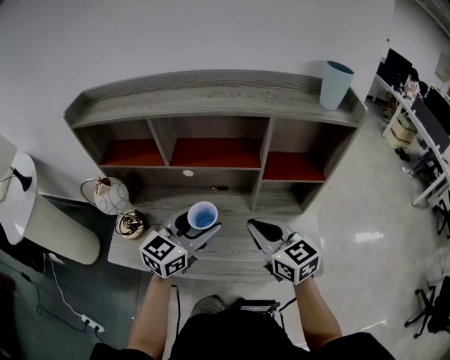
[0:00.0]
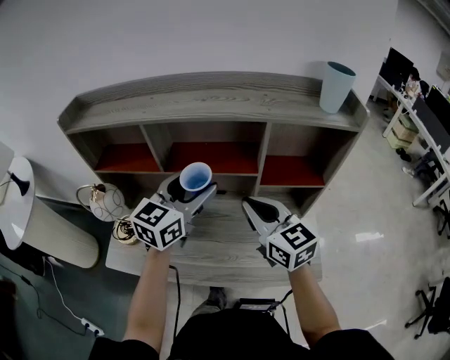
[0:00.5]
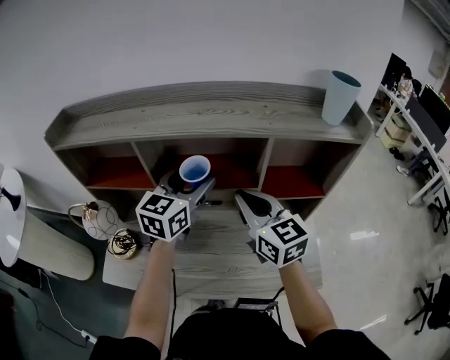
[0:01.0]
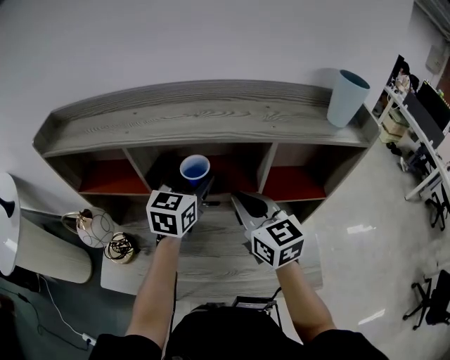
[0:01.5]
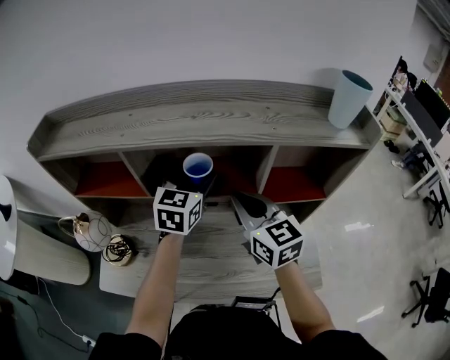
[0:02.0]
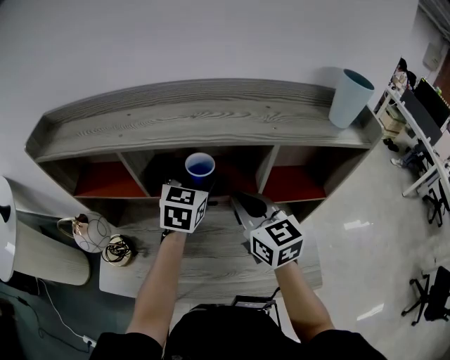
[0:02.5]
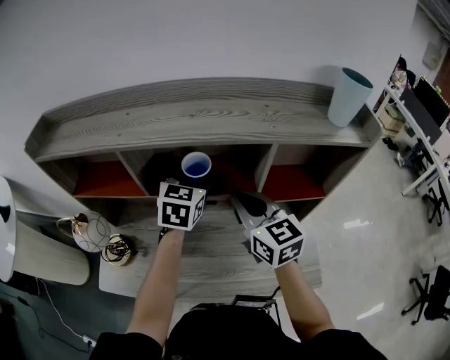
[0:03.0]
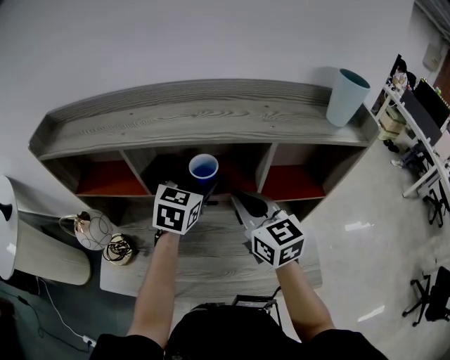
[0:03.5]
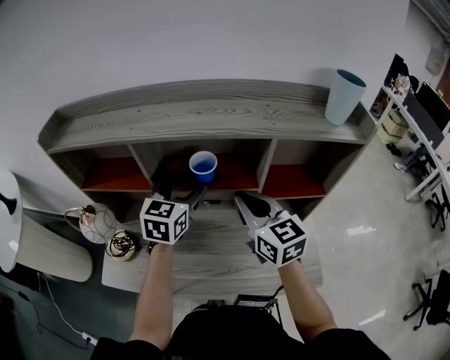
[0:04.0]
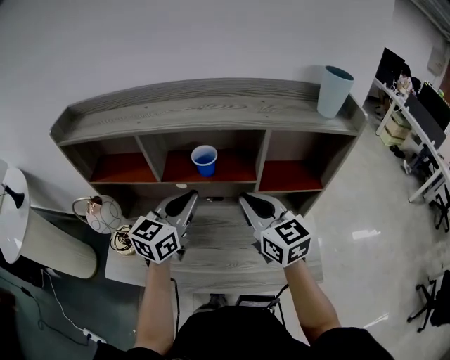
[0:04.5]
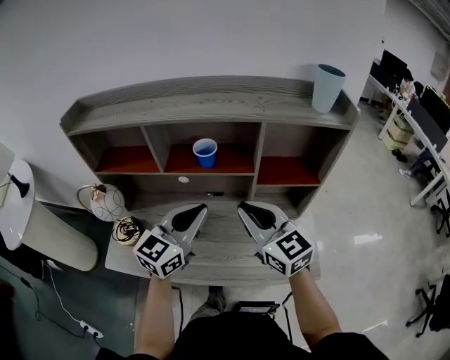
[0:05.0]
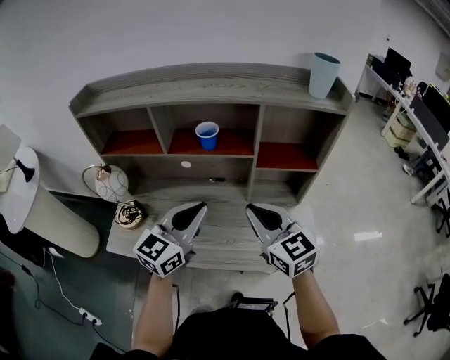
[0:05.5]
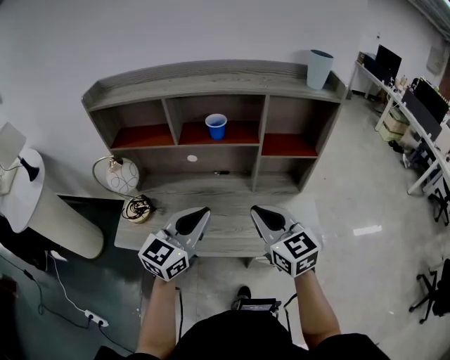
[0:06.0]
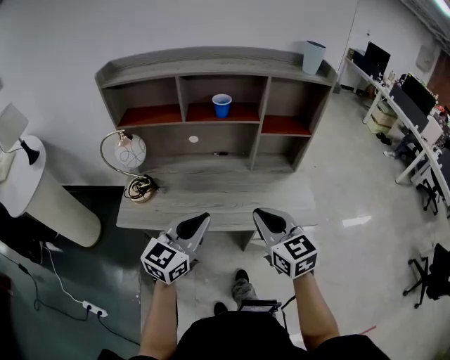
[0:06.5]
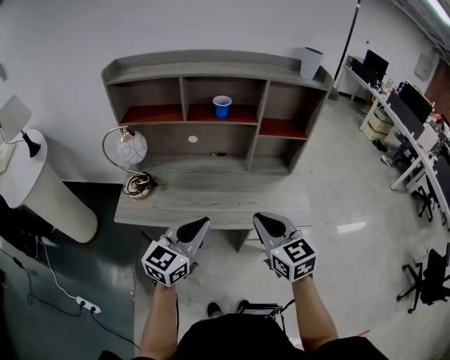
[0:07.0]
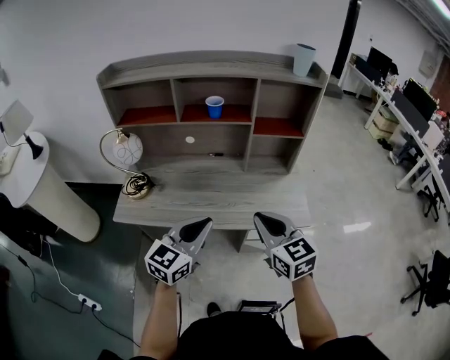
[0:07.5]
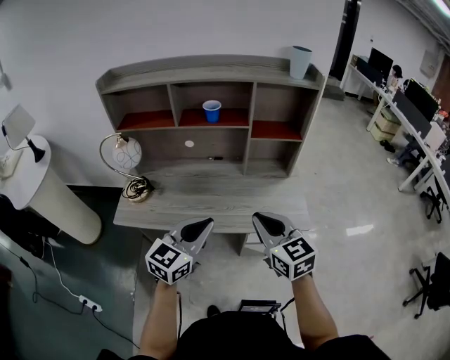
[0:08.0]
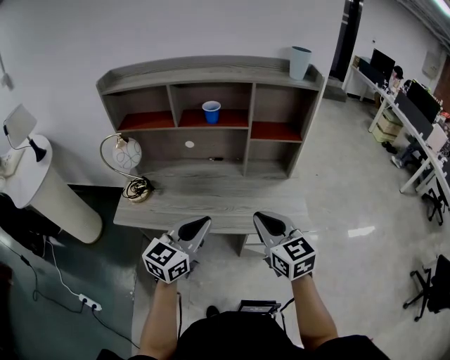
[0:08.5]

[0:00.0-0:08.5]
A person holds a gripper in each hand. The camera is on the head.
0:00.0 to 0:02.0: The two grippers go approximately 20 cm forward.
0:02.0 to 0:04.0: The left gripper moves about 5 cm.
0:04.0 to 0:06.5: The two grippers go roughly 35 cm backward. The left gripper rotates about 20 degrees, and closes.
0:06.5 to 0:08.5: Both grippers travel together to the right, about 5 cm.

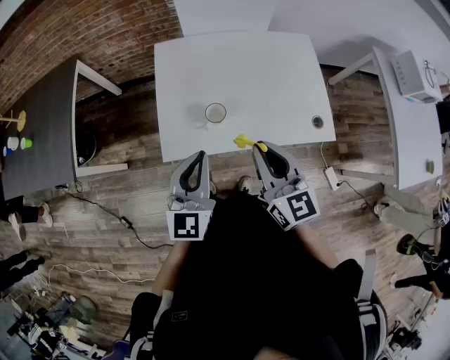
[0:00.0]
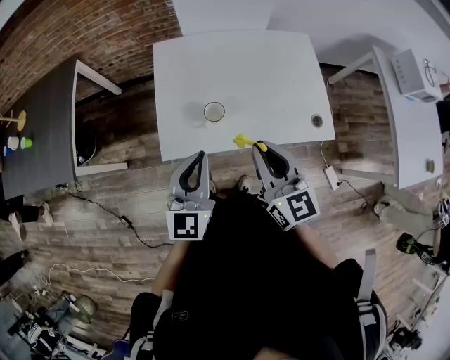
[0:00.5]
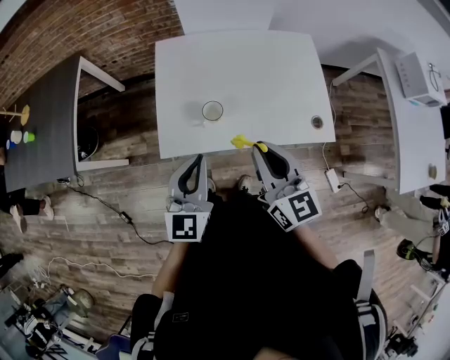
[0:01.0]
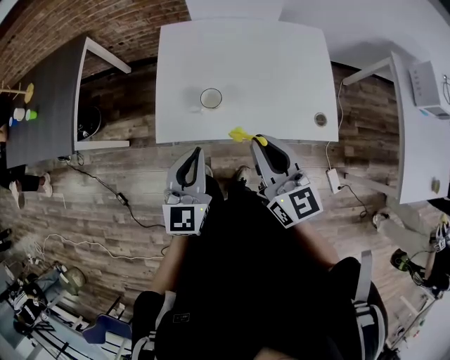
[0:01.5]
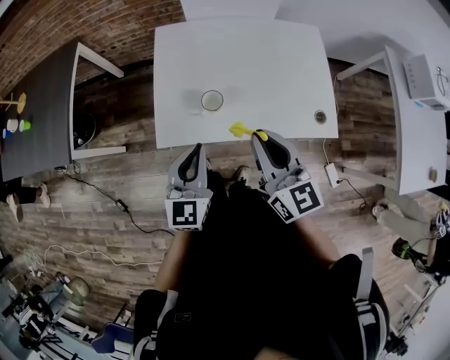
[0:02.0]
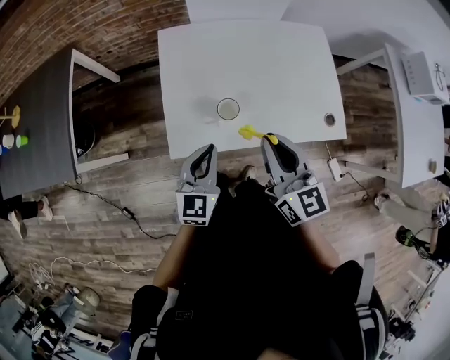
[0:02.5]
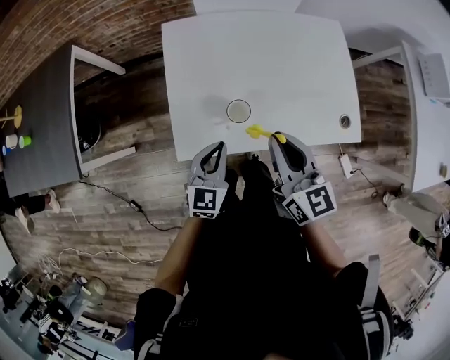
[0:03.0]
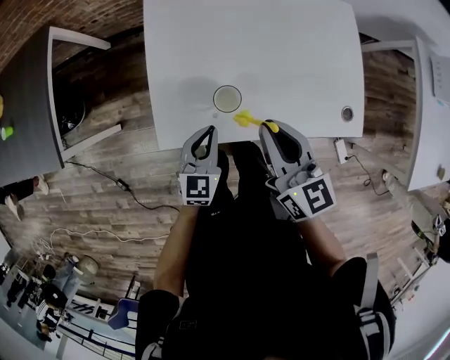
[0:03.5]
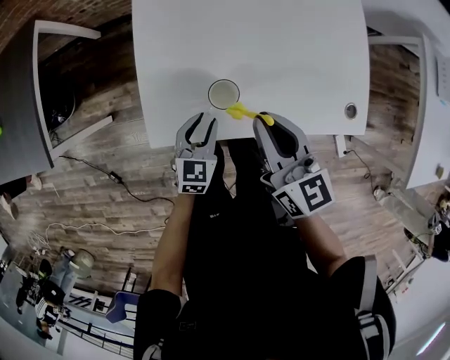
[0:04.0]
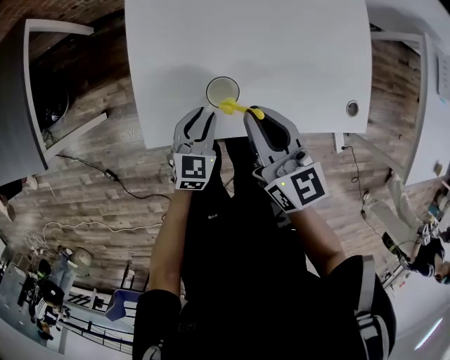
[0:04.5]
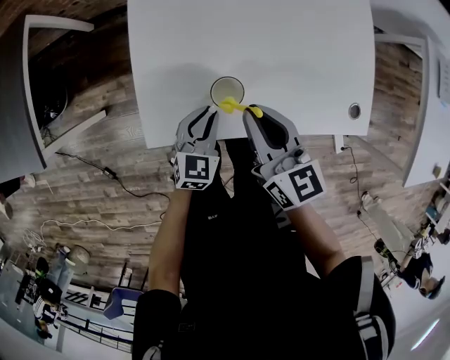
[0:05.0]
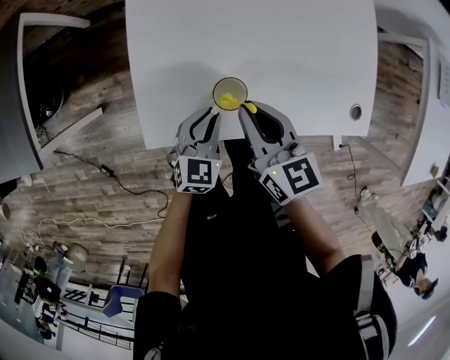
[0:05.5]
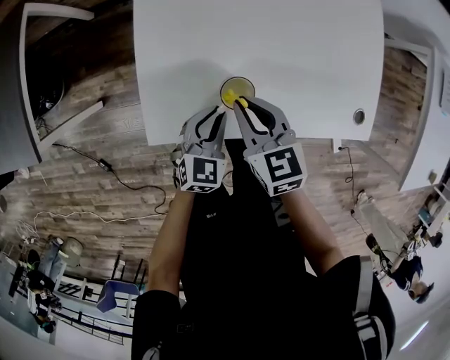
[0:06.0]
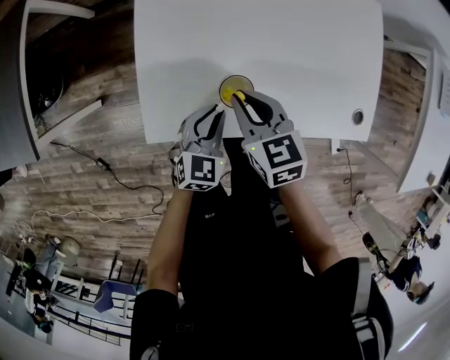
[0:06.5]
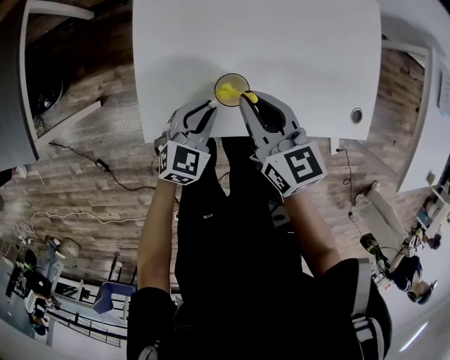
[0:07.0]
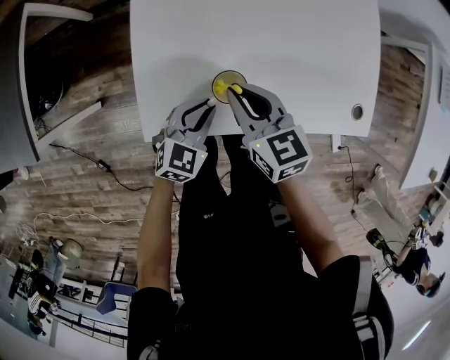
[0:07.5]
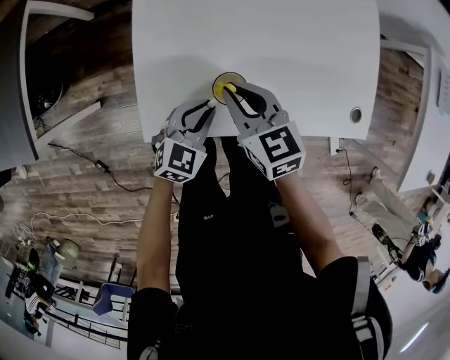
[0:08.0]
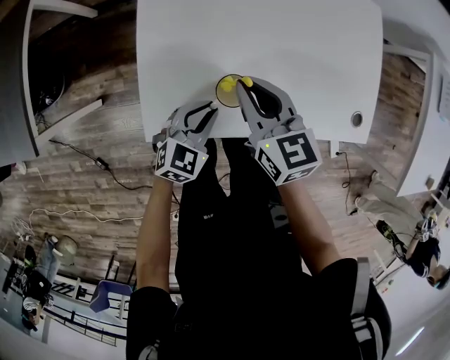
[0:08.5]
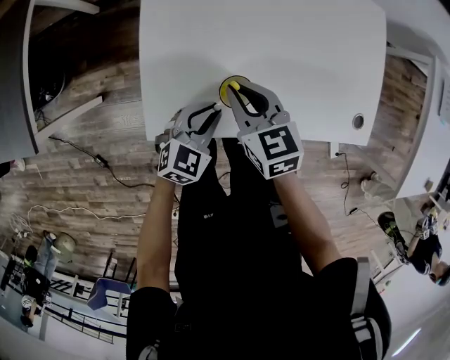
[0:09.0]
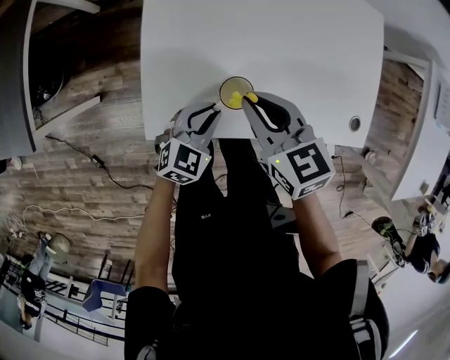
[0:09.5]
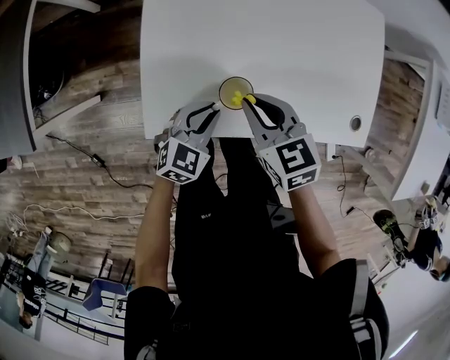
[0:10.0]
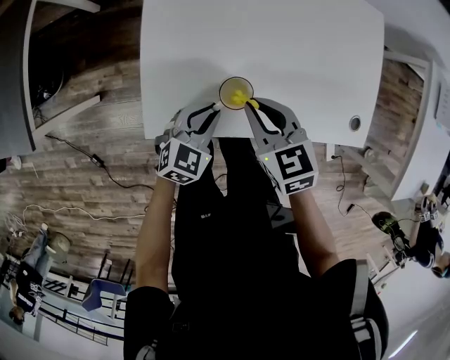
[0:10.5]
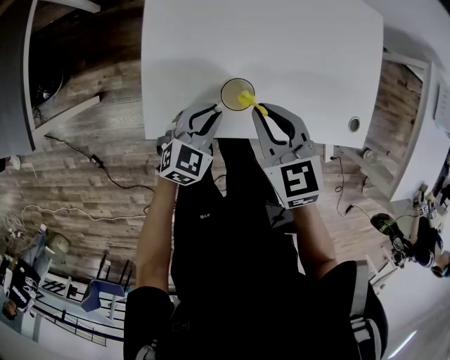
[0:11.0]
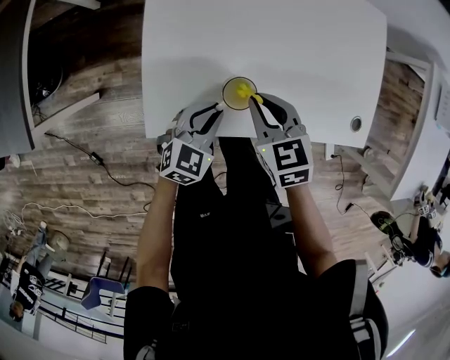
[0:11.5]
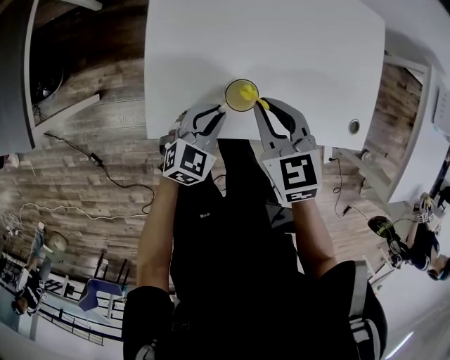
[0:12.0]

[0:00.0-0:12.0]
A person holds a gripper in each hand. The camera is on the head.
0:00.0 to 0:02.0: The grippers make only small movements.
0:02.0 to 0:04.0: The right gripper is displaced downward and forward by about 15 cm, while the left gripper goes some 25 cm downward and forward, swivels approximately 30 degrees, and opens its fingers.
0:04.0 to 0:06.0: The right gripper goes roughly 10 cm downward and to the left, and rotates some 30 degrees.
0:06.0 to 0:12.0: There are only small adjustments of the grippers.

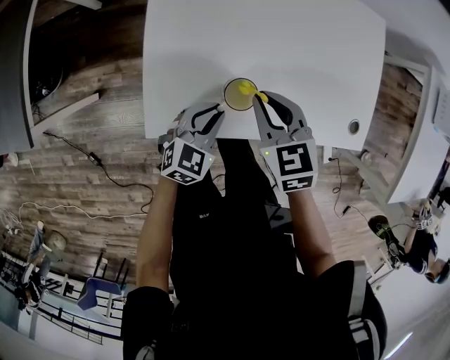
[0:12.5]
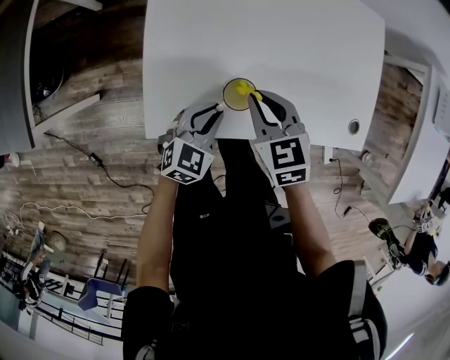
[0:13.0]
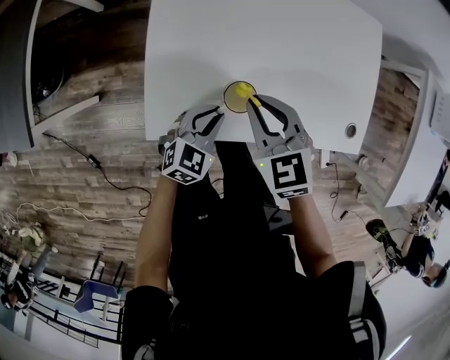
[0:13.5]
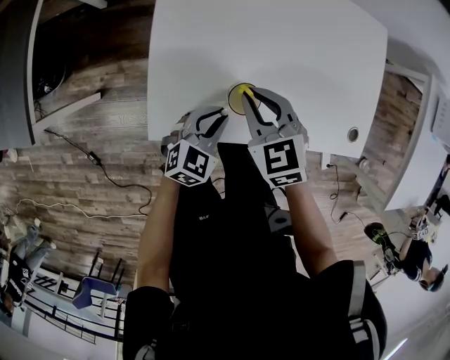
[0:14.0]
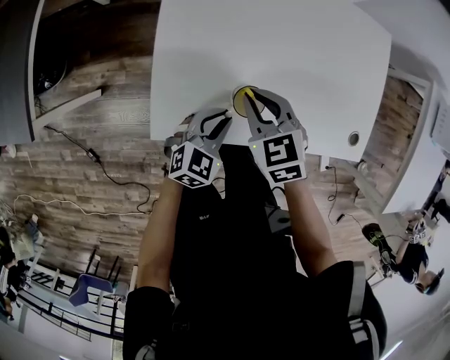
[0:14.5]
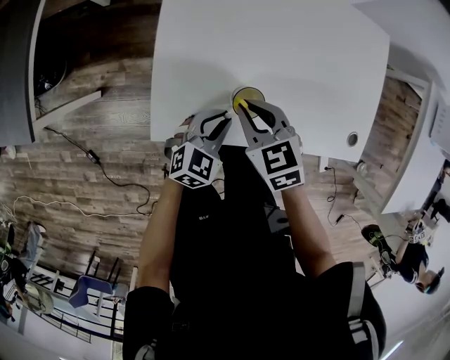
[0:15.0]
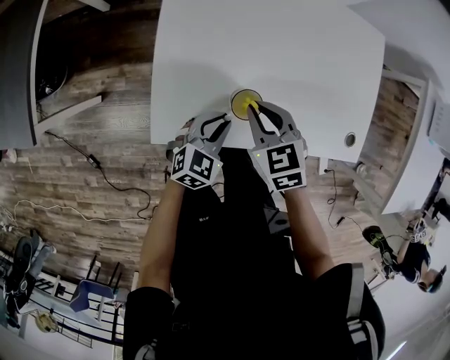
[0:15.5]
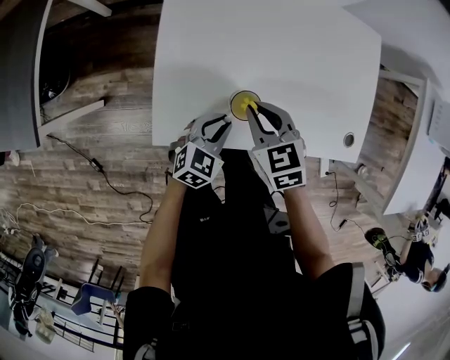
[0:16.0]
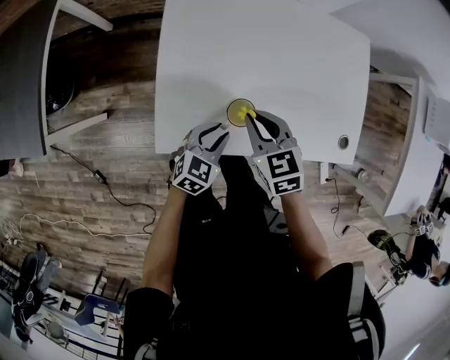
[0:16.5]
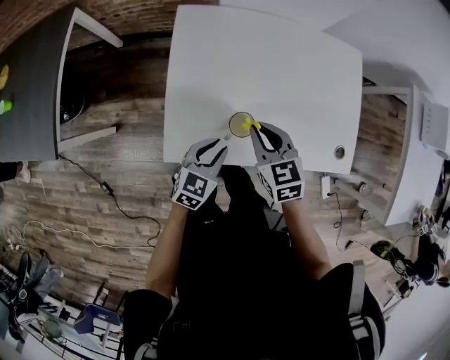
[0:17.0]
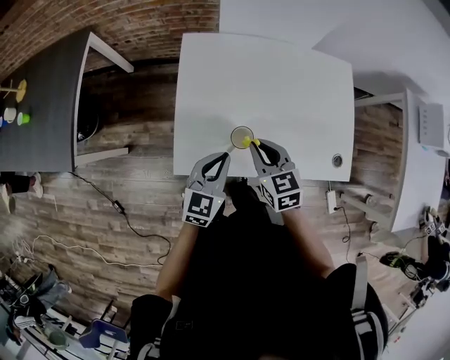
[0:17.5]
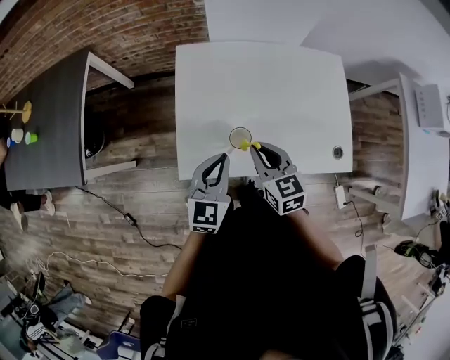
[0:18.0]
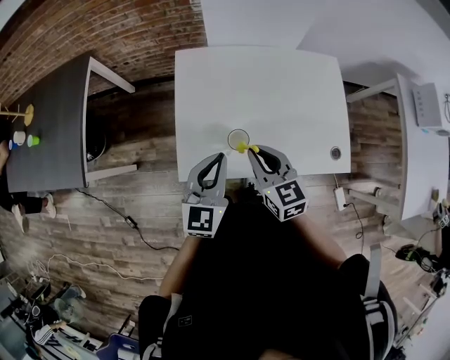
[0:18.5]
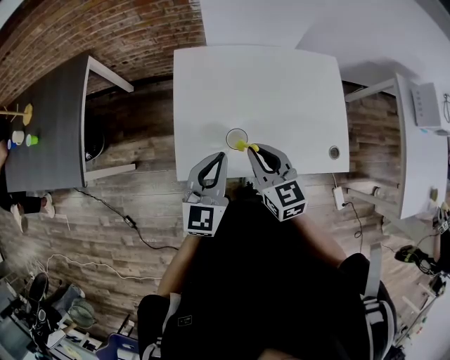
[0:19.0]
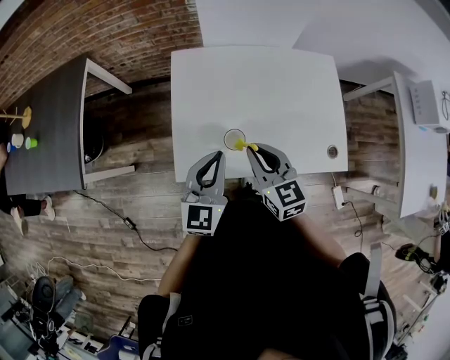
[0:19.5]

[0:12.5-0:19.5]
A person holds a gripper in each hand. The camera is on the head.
0:12.5 to 0:16.0: The grippers stay close to where they were, moving slightly.
0:16.0 to 0:17.5: The right gripper shifts some 10 cm upward; the left gripper travels upward by some 15 cm, and rotates approximately 20 degrees.
0:17.5 to 0:19.5: The grippers both shift upward by approximately 10 cm.
